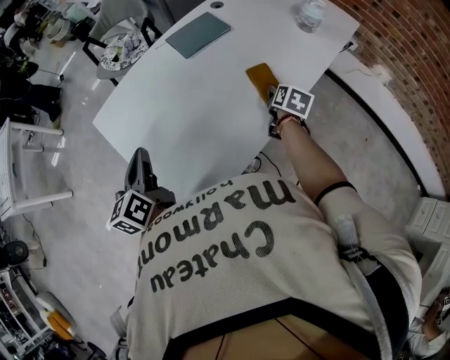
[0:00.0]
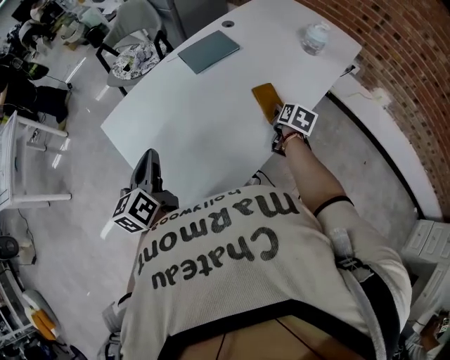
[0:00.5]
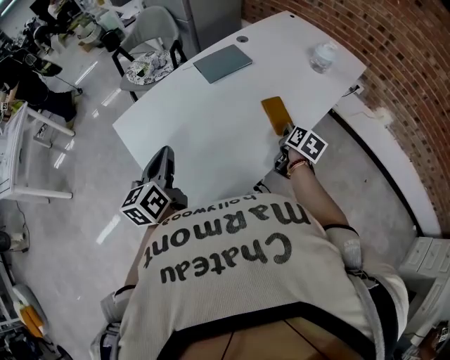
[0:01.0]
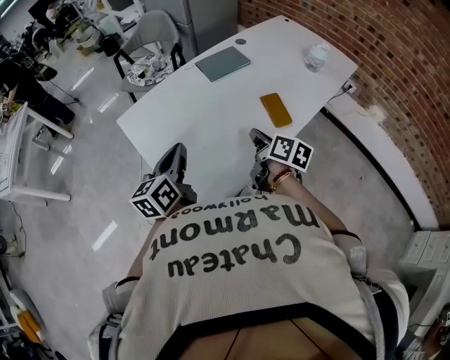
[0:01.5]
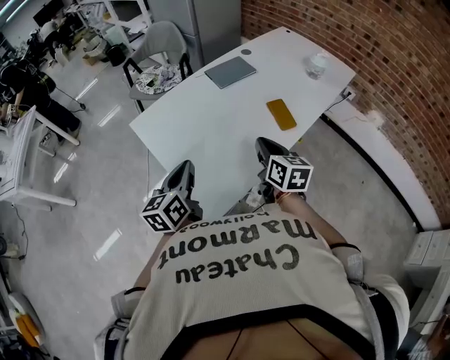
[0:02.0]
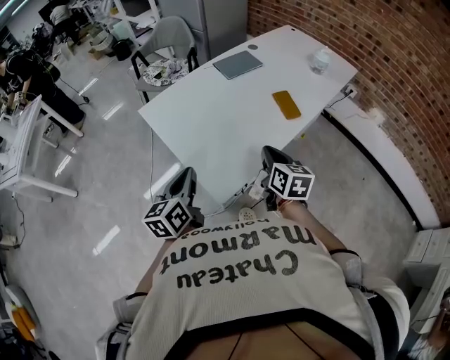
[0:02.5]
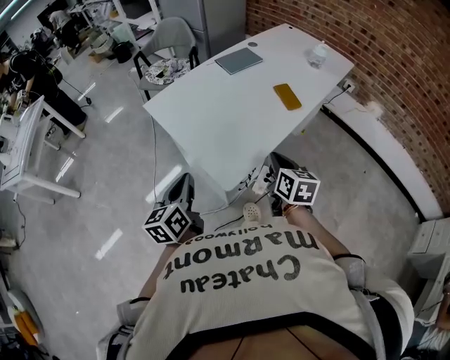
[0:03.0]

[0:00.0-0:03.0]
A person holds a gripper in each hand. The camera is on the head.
0:00.0 to 0:01.5: The left gripper ends up about 5 cm from where it was, while the right gripper is displaced to the left, backward and upward by about 25 cm, rotates roughly 30 degrees, and closes its fingers.
0:01.5 to 0:03.0: The right gripper heads backward, covering approximately 20 cm, and turns by about 30 degrees; the left gripper is displaced backward and to the left by roughly 25 cm.

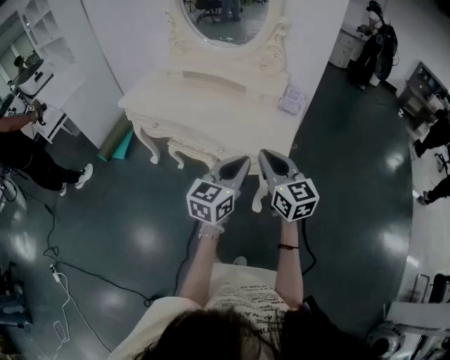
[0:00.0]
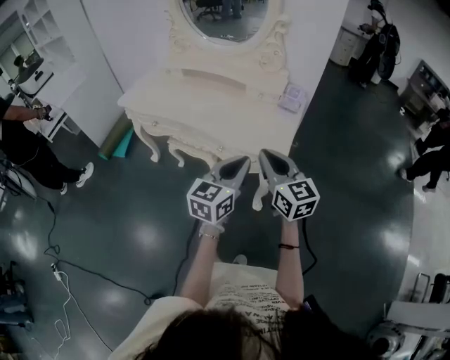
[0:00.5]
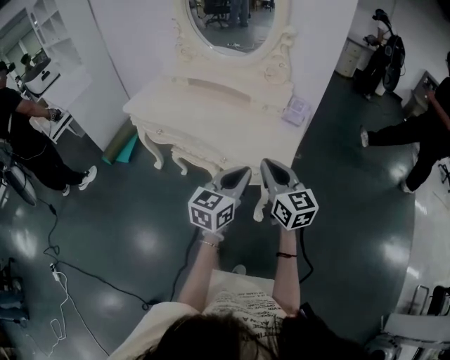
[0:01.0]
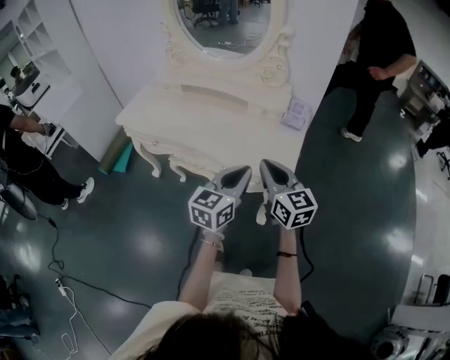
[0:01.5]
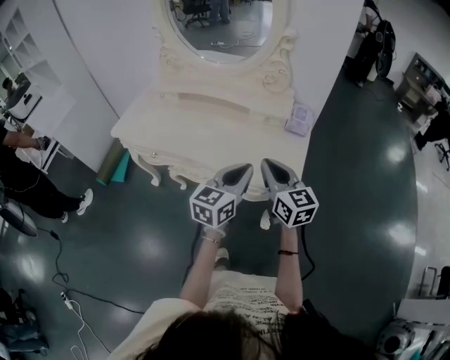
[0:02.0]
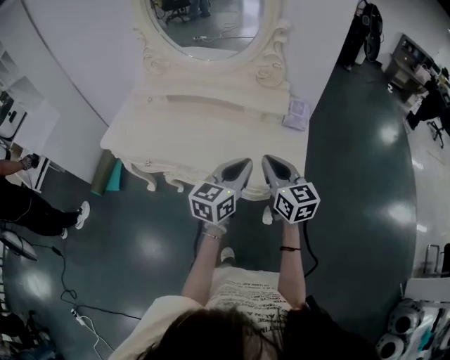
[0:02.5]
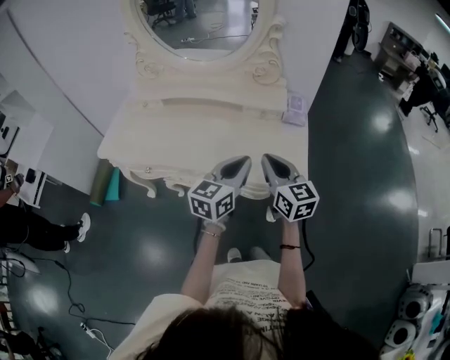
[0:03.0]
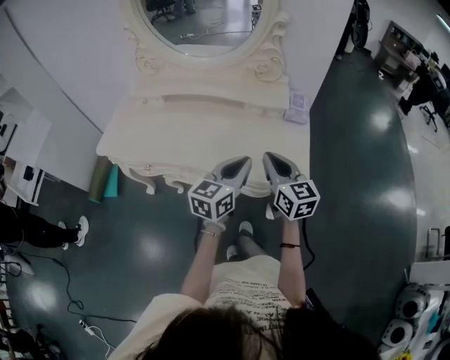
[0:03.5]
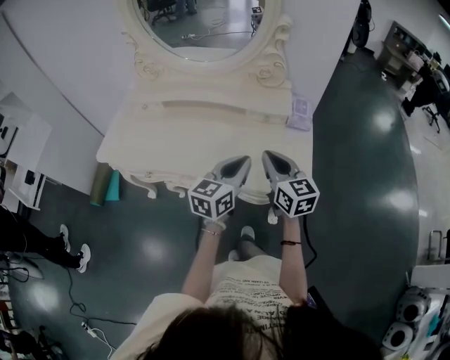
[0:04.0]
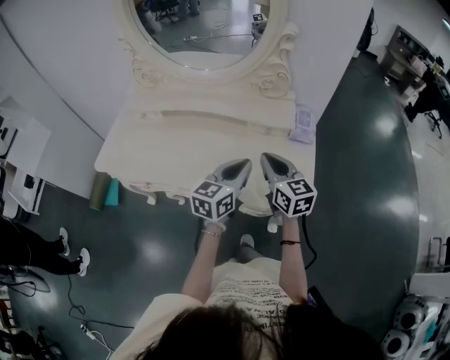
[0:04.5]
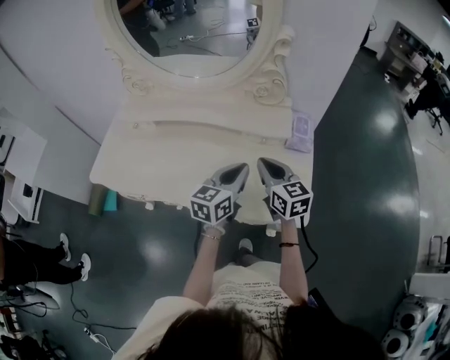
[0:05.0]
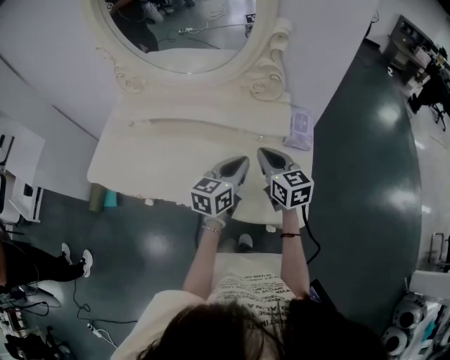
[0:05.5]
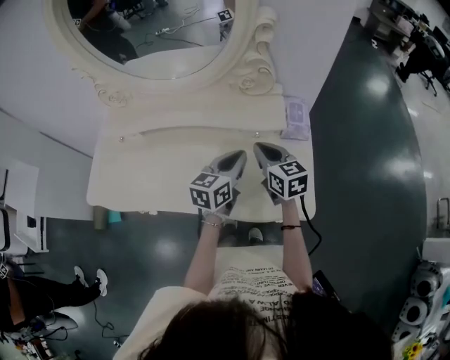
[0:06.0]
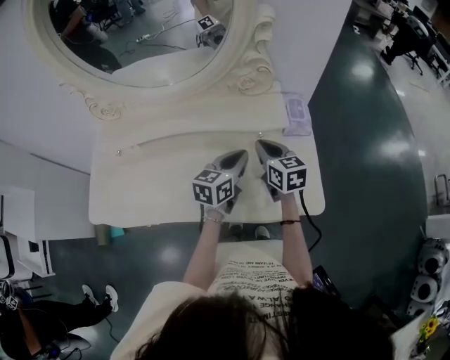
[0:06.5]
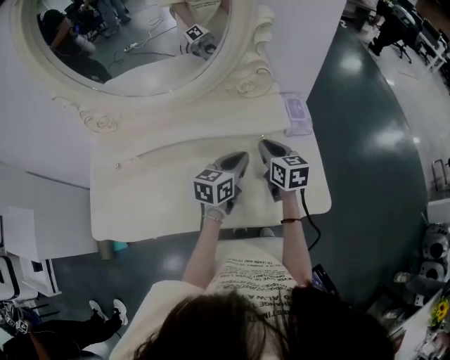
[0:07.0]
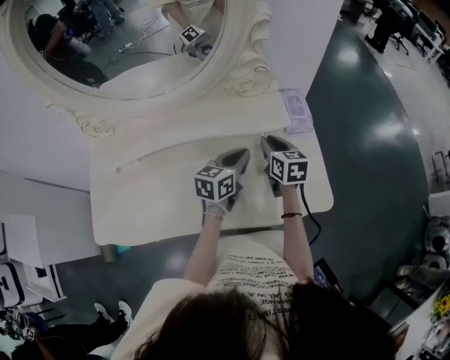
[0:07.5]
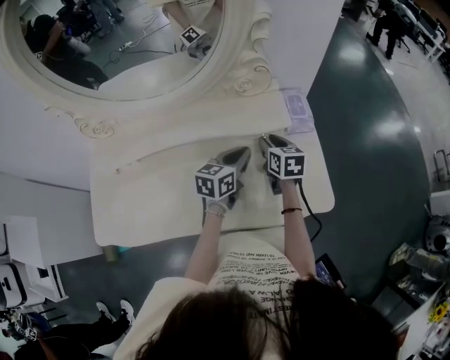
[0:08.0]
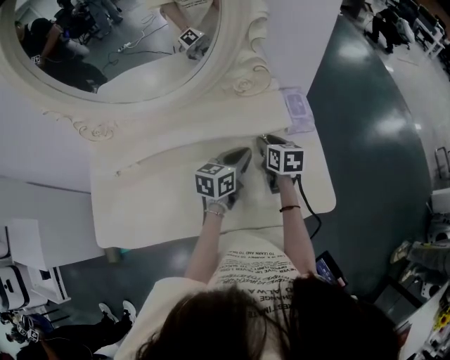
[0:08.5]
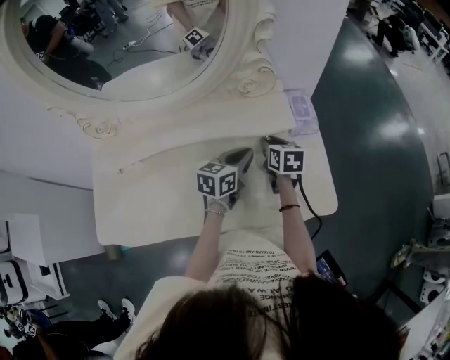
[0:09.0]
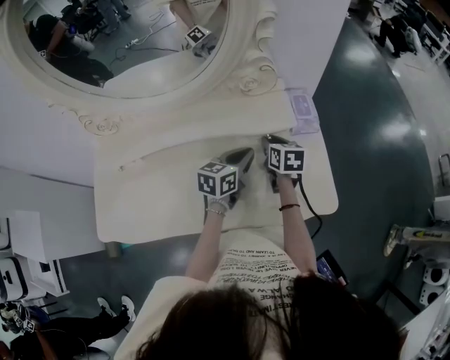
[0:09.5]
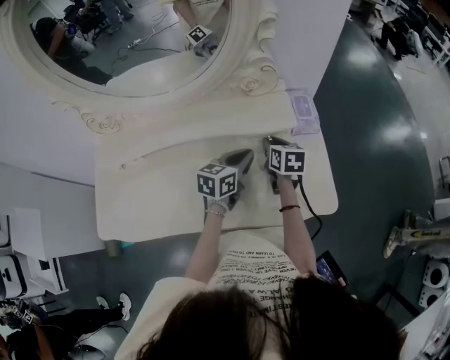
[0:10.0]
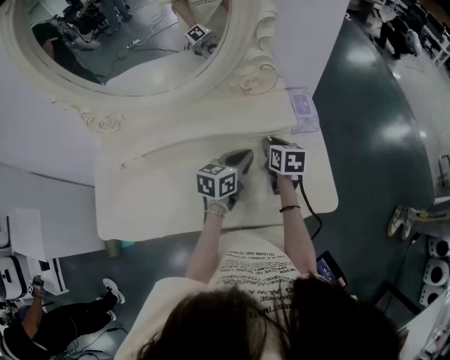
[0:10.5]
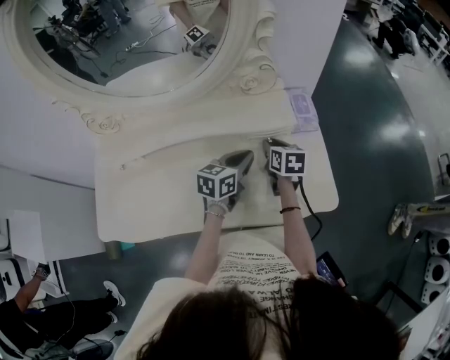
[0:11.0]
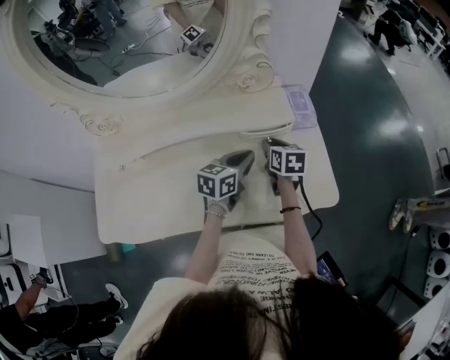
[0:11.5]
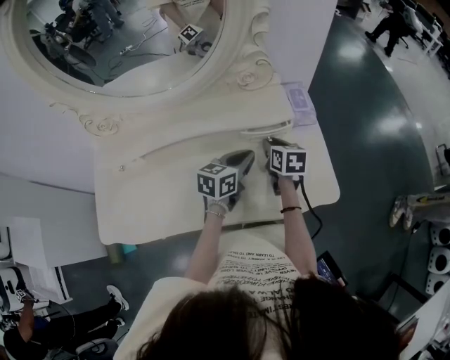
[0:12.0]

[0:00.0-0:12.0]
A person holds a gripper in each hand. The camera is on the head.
0:00.0 to 0:02.0: Both grippers move forward, roughly 15 cm.
0:02.0 to 0:04.0: The right gripper moves forward, approximately 10 cm; the left gripper heads forward and to the left, covering roughly 10 cm.
0:04.0 to 0:06.0: Both grippers move forward, some 15 cm.
0:06.0 to 0:08.0: The left gripper shifts some 5 cm forward. The right gripper moves downward and forward, about 10 cm, changes its angle by roughly 30 degrees, and opens its fingers.
0:08.0 to 0:12.0: There are only small adjustments of the grippers.

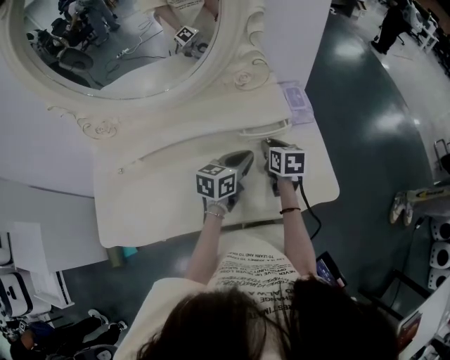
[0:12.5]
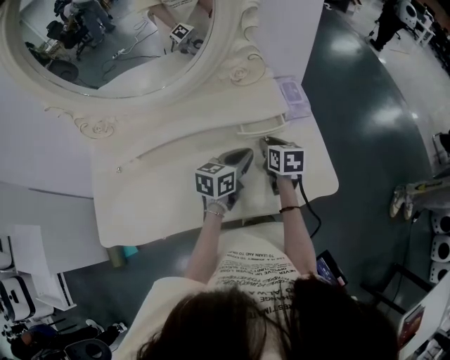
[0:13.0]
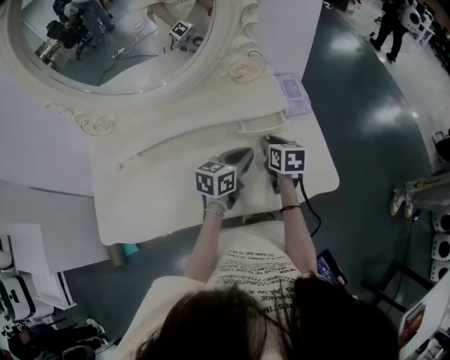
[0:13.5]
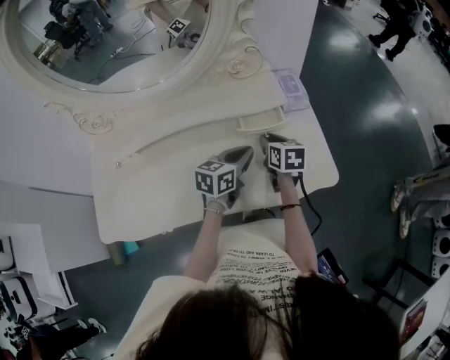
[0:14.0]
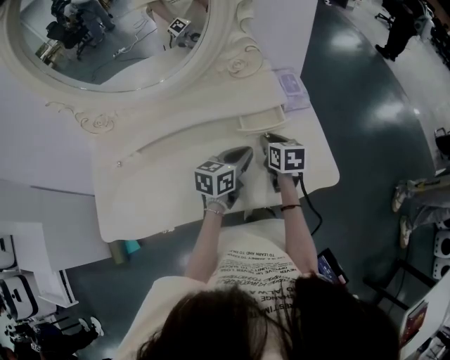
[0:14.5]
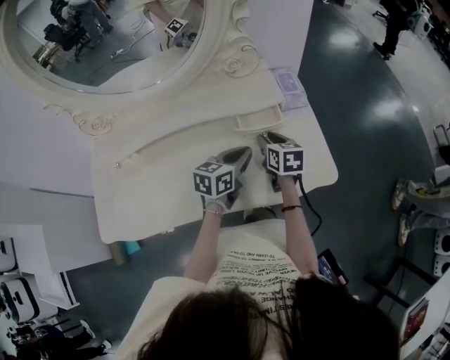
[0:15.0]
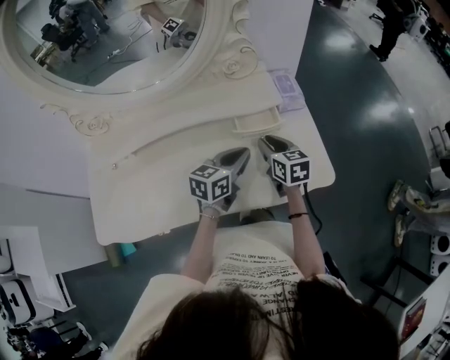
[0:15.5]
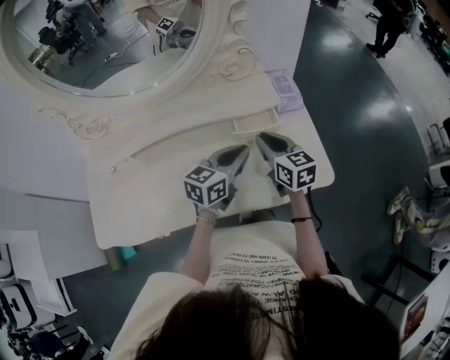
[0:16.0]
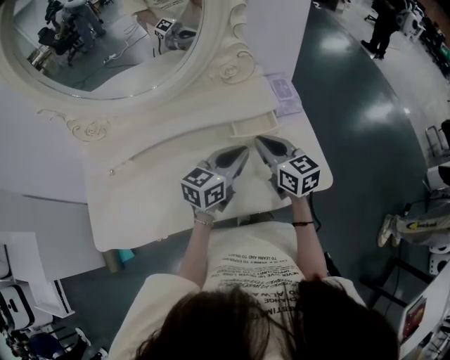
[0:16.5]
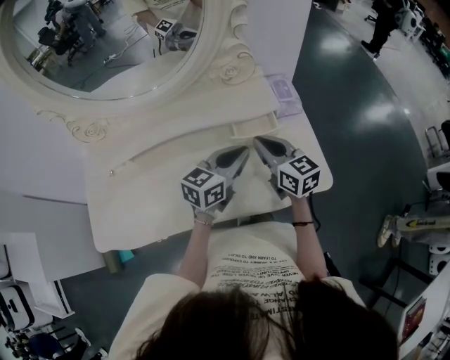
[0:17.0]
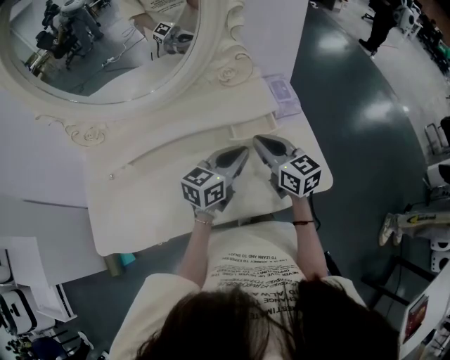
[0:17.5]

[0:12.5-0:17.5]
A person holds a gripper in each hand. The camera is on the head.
0:12.5 to 0:15.0: The grippers stay close to where they were, moving slightly.
0:15.0 to 0:17.5: The left gripper moves upward, approximately 5 cm. Meanwhile the right gripper is displaced upward by roughly 10 cm, rotates some 30 degrees, and closes its fingers.

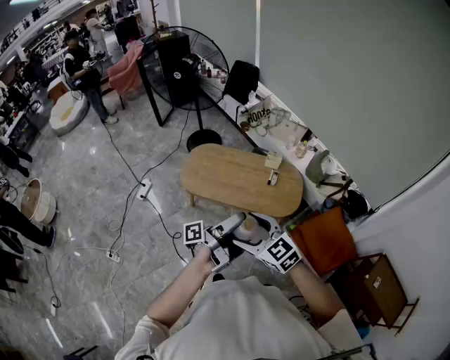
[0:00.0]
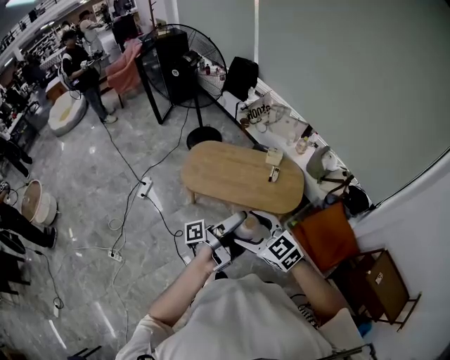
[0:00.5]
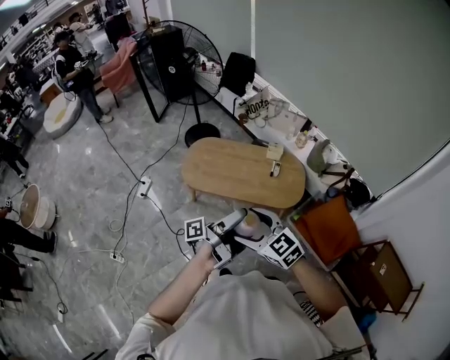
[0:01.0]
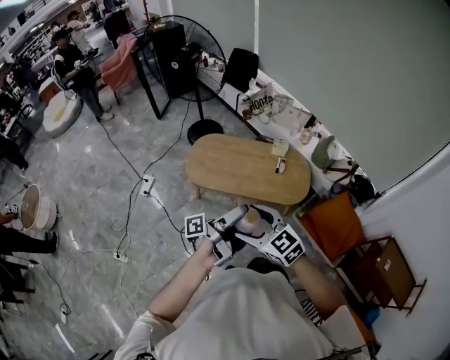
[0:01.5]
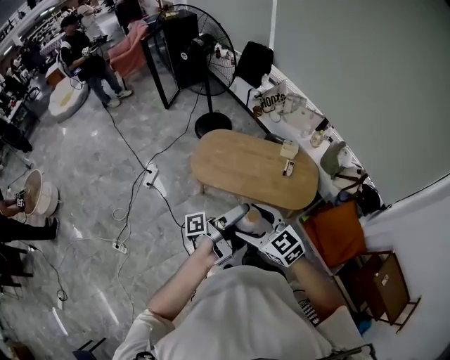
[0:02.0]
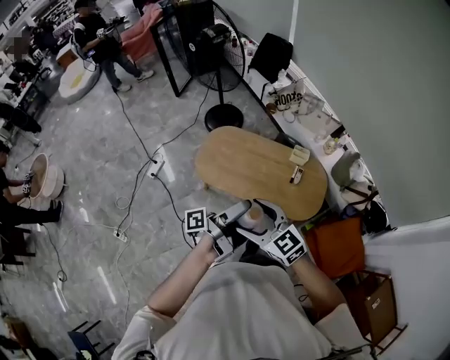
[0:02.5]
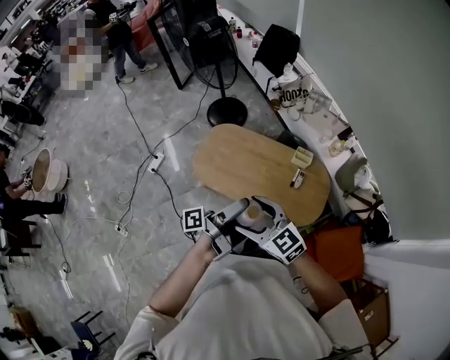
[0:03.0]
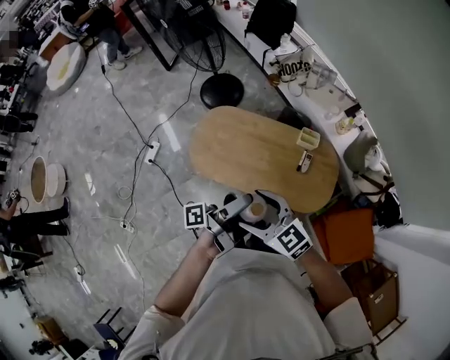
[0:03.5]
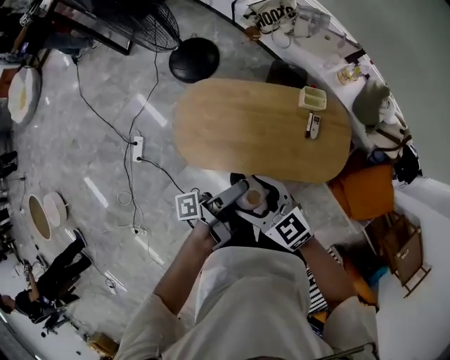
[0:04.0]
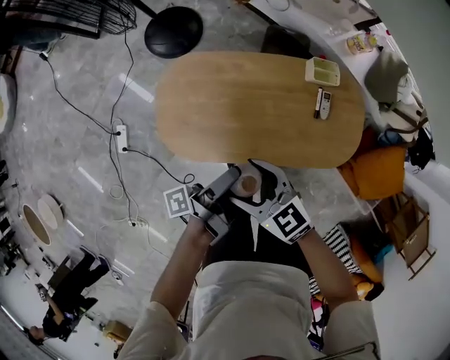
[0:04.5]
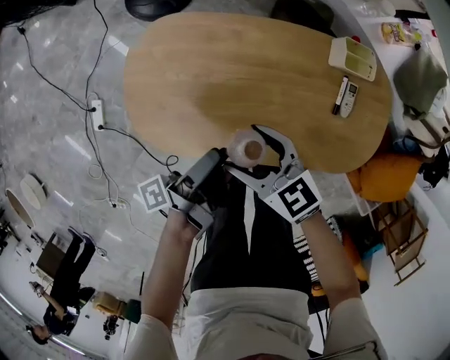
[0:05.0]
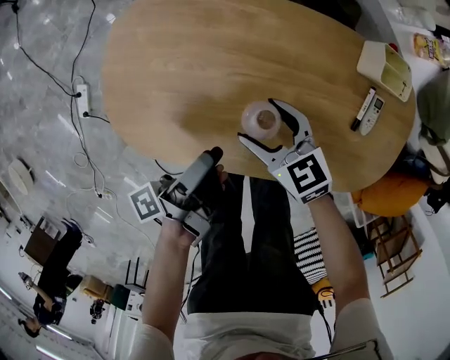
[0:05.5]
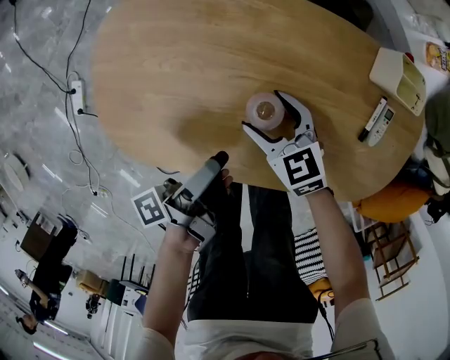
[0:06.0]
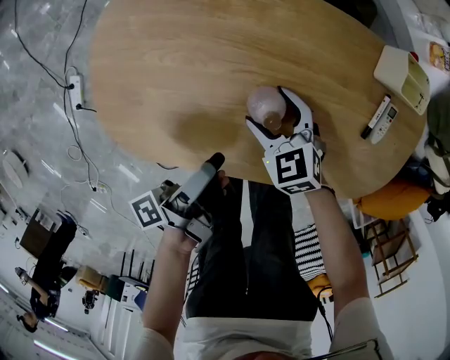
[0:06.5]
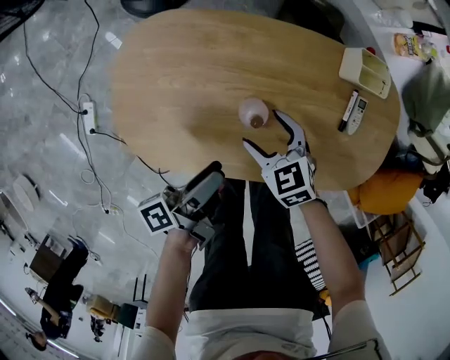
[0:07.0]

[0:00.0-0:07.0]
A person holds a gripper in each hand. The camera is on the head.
0:00.0 to 0:02.0: The right gripper changes place by some 10 cm.
0:02.0 to 0:03.5: The right gripper moves some 30 cm.
0:03.5 to 0:05.0: The right gripper travels downward by approximately 40 cm, and turns by about 30 degrees.
0:05.0 to 0:07.0: The right gripper shifts some 15 cm downward, and rotates approximately 20 degrees.
